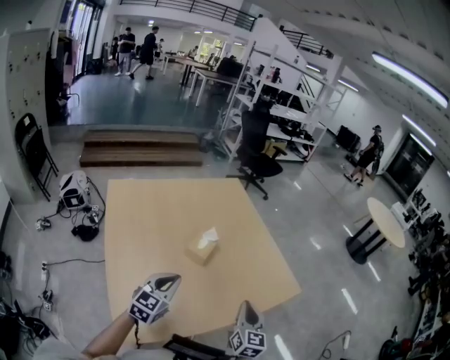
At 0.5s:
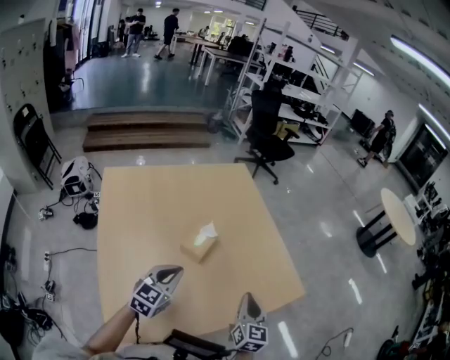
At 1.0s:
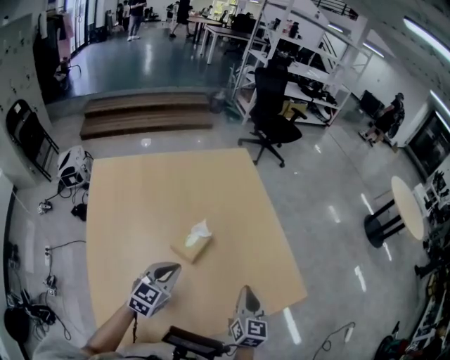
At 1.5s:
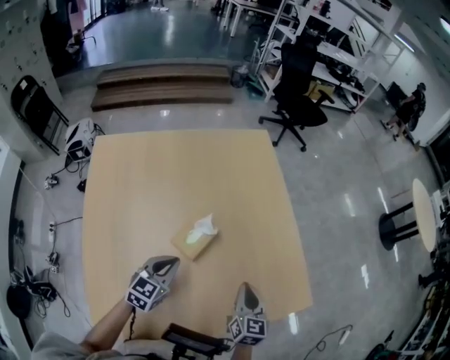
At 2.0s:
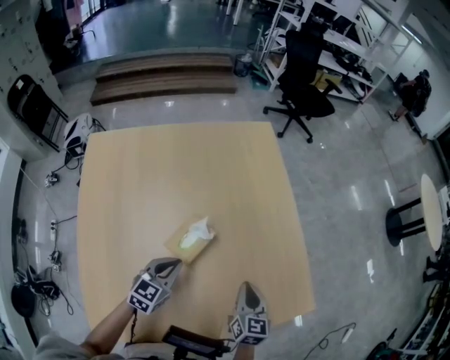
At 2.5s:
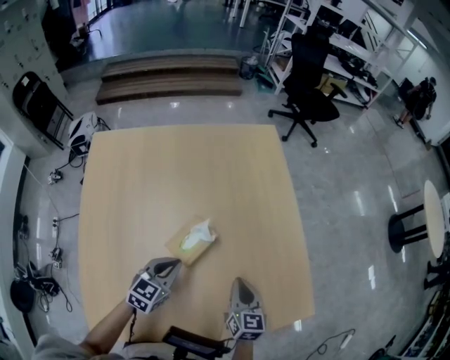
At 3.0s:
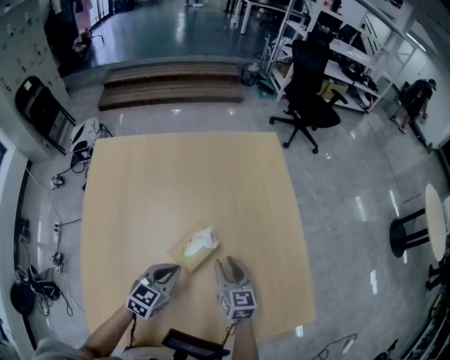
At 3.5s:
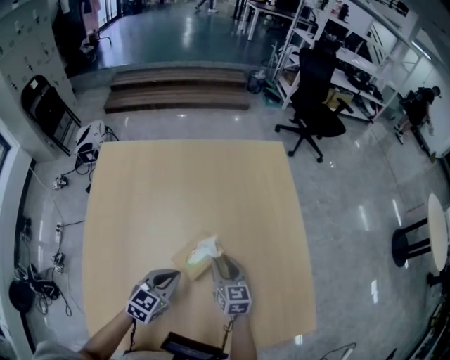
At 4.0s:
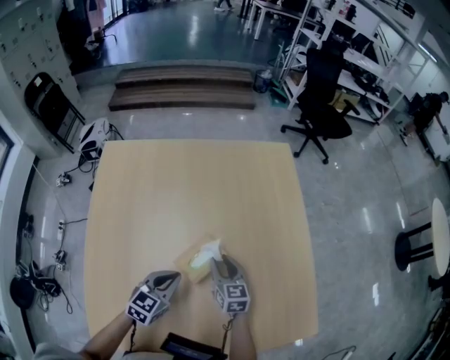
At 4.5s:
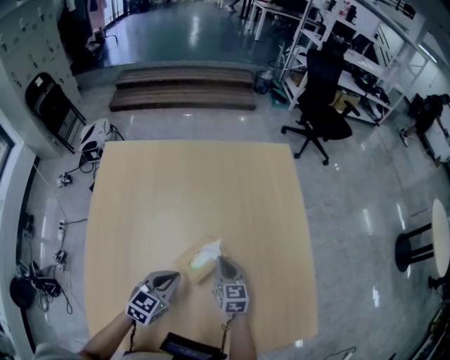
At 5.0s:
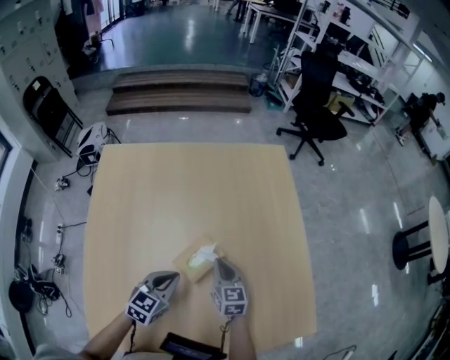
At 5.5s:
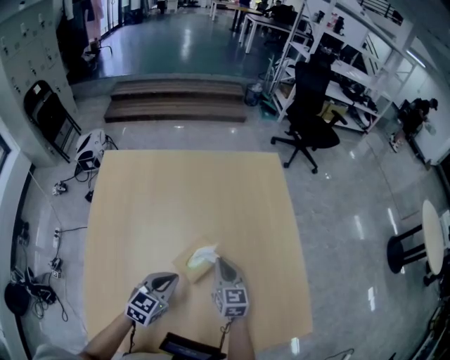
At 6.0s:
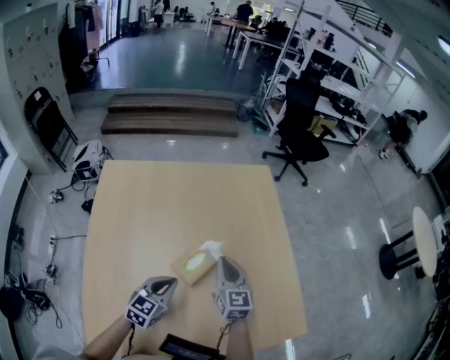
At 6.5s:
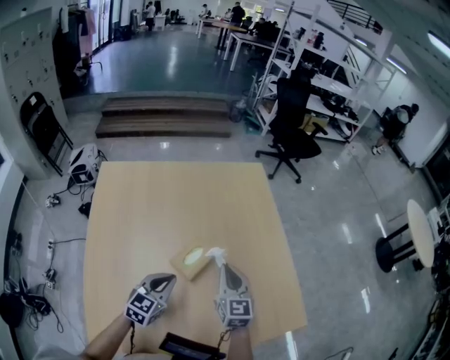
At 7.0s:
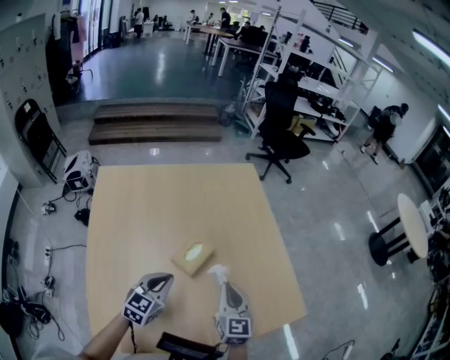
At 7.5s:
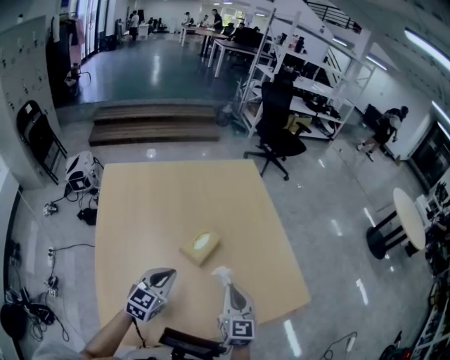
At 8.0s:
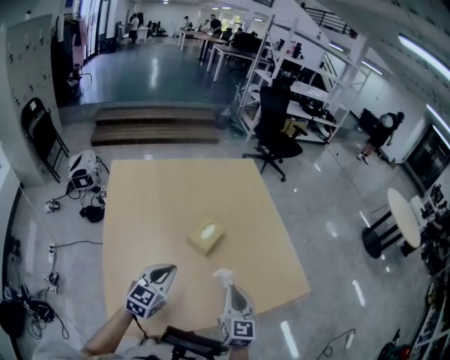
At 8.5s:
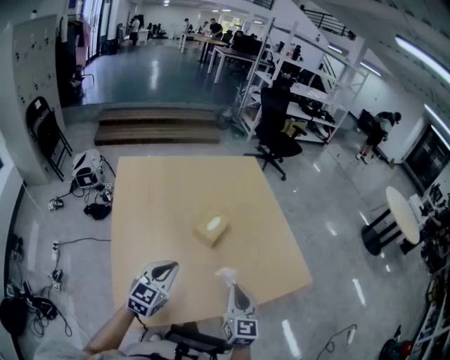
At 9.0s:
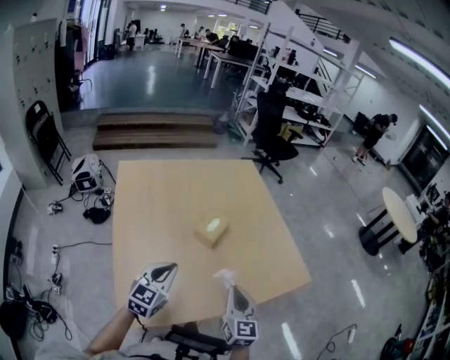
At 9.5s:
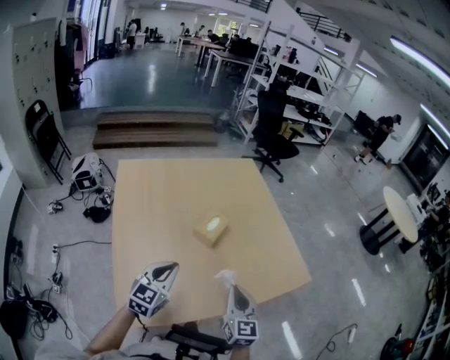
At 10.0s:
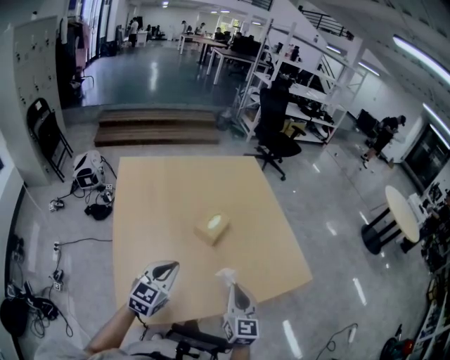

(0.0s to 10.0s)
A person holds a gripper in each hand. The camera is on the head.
0.0s - 2.0s: The two grippers go roughly 25 cm forward and downward. The right gripper swivels some 20 degrees.
2.0s - 4.0s: The right gripper travels to the left, forward and downward by roughly 20 cm, rotates about 20 degrees, and opens up.
4.0s - 6.0s: The right gripper shifts roughly 15 cm upward, and closes up.
6.0s - 8.0s: The left gripper goes approximately 15 cm backward and upward. Meanwhile the right gripper goes some 25 cm backward.
8.0s - 10.0s: Both grippers travel together backward, about 5 cm.

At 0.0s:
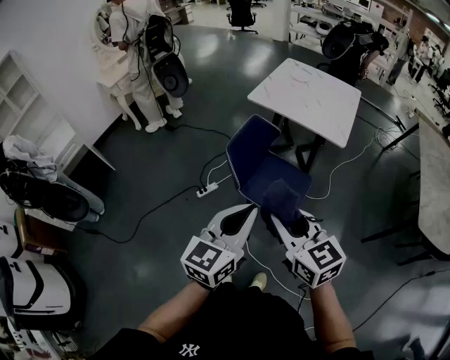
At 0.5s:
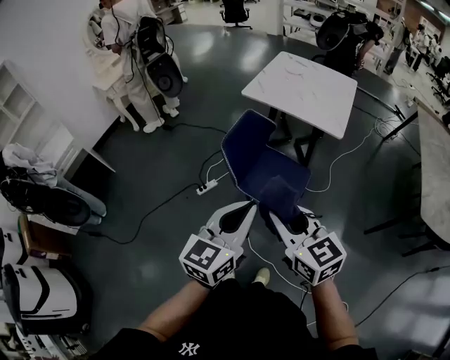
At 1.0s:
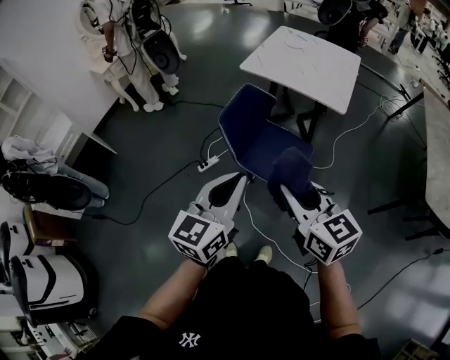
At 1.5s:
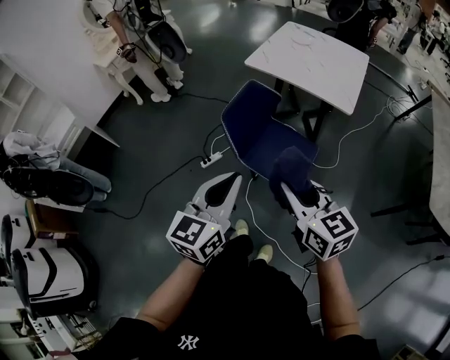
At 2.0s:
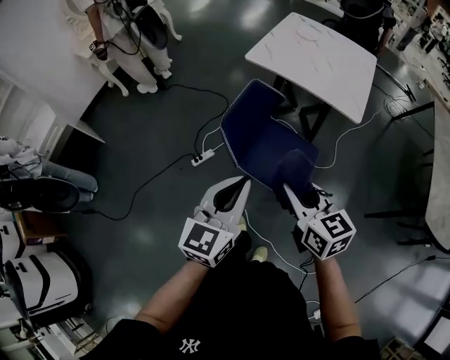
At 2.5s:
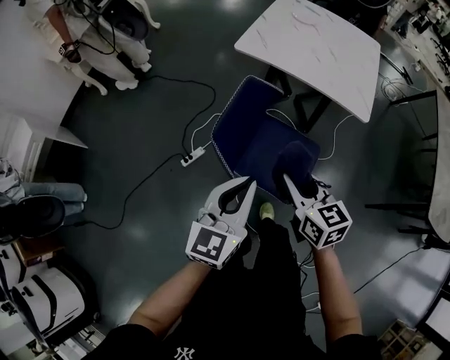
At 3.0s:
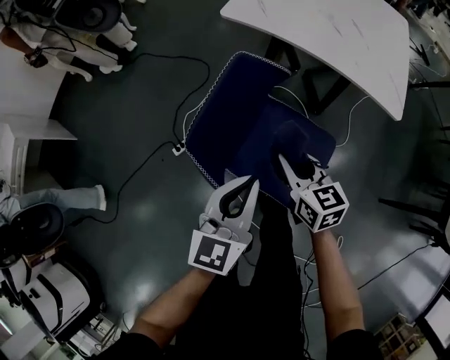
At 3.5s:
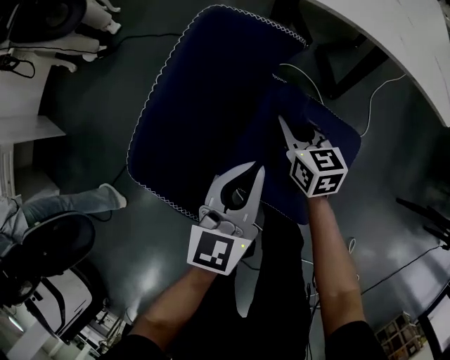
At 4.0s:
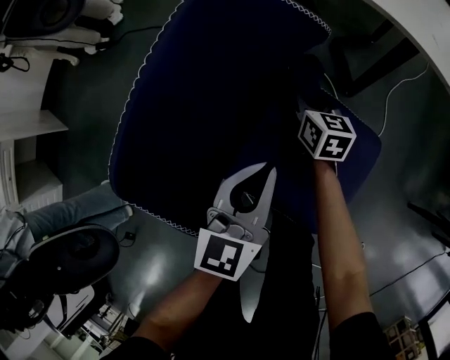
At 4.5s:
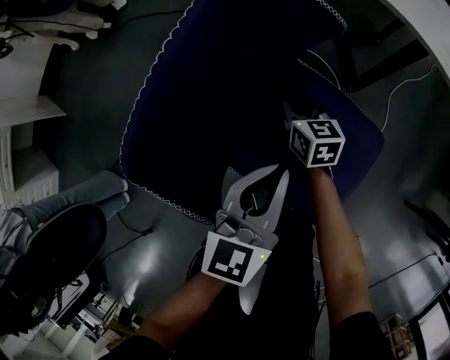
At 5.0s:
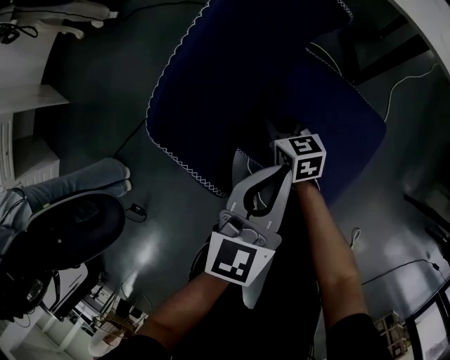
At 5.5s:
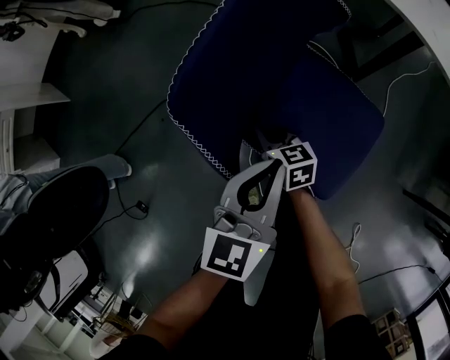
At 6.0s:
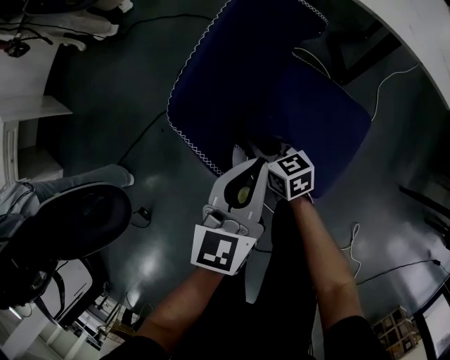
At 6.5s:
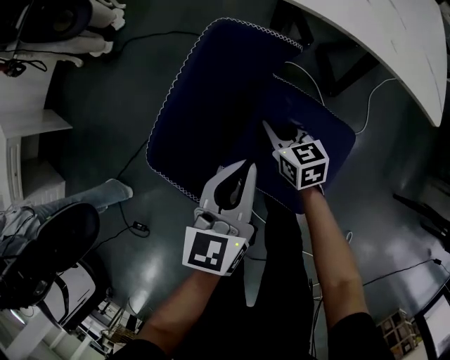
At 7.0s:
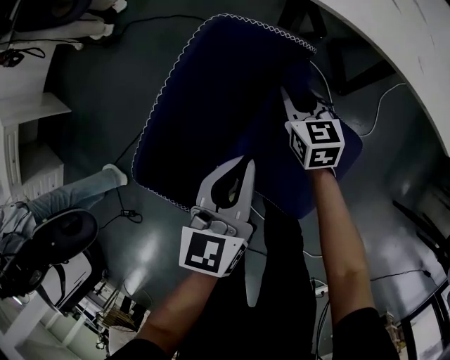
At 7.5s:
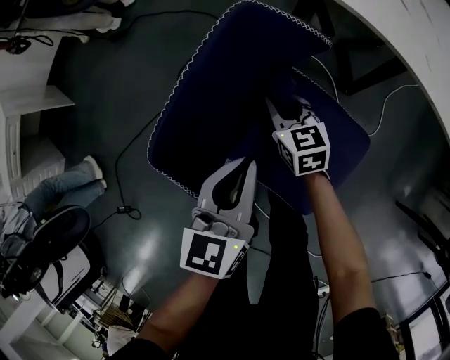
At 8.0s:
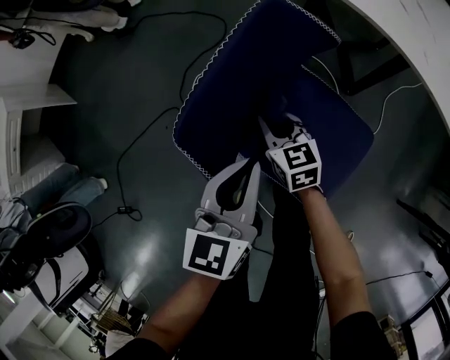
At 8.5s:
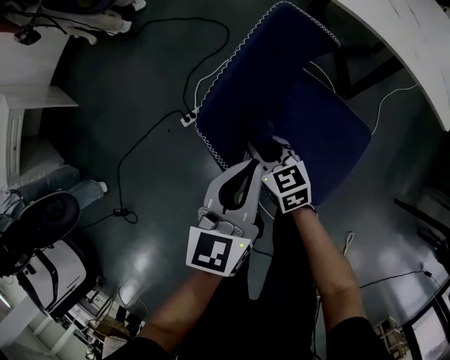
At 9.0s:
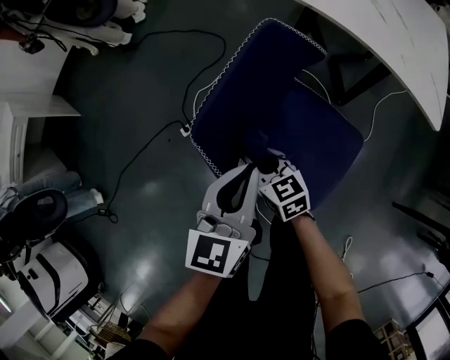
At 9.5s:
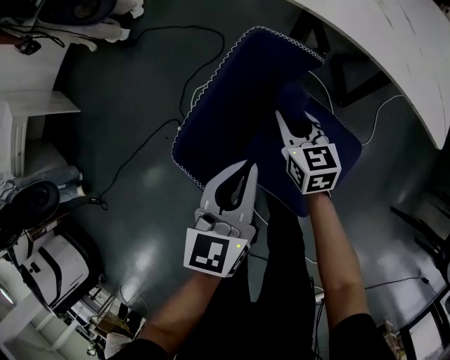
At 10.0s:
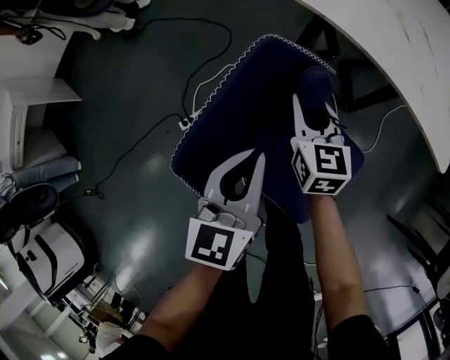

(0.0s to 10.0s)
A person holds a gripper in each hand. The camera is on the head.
0.0s - 2.0s: The two grippers go roughly 15 cm forward and downward.
2.0s - 4.0s: Both grippers travel together downward and forward, about 60 cm. The right gripper swivels some 20 degrees.
4.0s - 6.0s: The right gripper is displaced backward and to the left by about 25 cm, and changes its angle by roughly 30 degrees. The left gripper shifts roughly 15 cm upward, backward and to the left.
6.0s - 8.0s: The left gripper travels forward by approximately 5 cm. The right gripper travels forward by roughly 10 cm.
8.0s - 10.0s: The right gripper shifts approximately 20 cm to the right, forward and upward. Meanwhile the left gripper travels forward by about 5 cm.

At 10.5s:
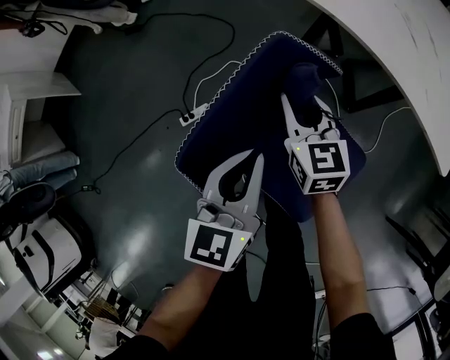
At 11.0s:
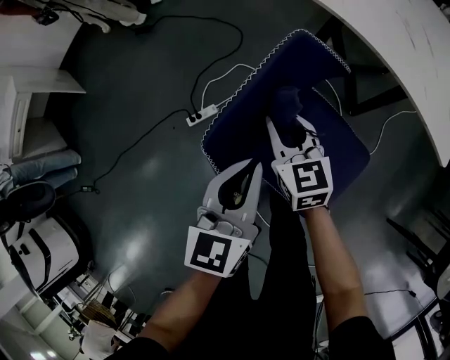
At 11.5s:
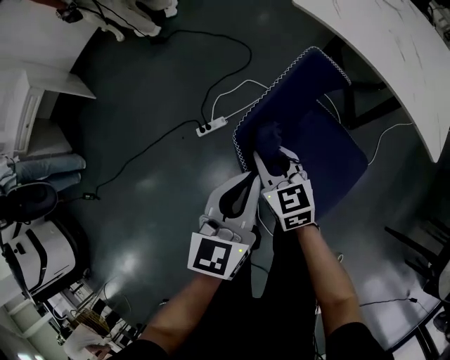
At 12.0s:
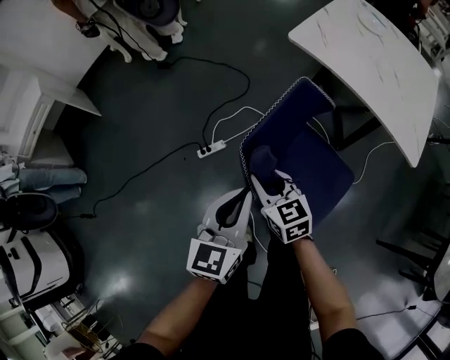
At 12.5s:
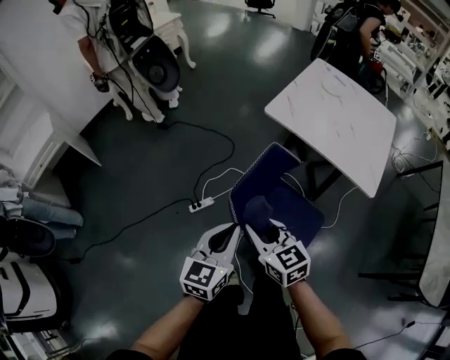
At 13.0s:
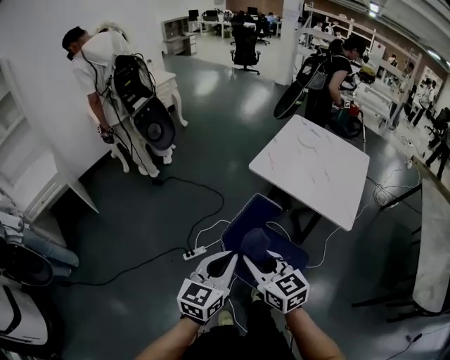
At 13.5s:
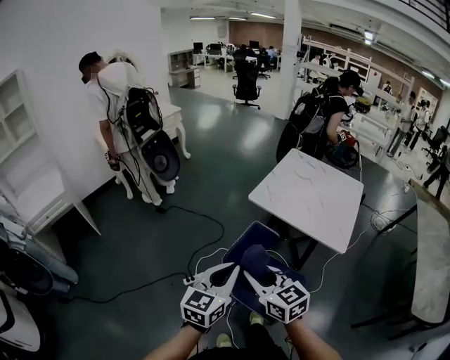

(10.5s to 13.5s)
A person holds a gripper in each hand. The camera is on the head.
10.5s - 12.0s: The left gripper moves to the left, backward and upward, roughly 20 cm. Meanwhile the right gripper moves backward, to the left and upward, some 30 cm.
12.0s - 13.5s: The grippers both shift upward by some 35 cm.

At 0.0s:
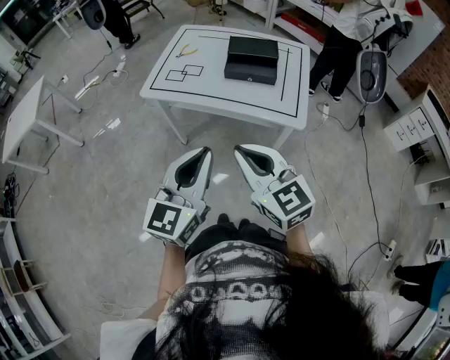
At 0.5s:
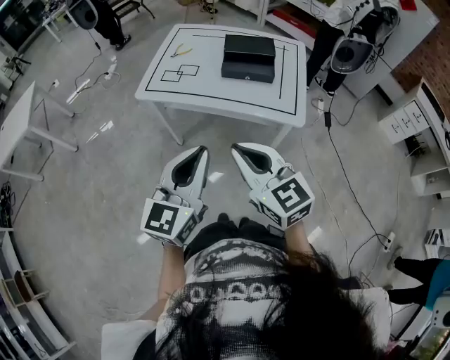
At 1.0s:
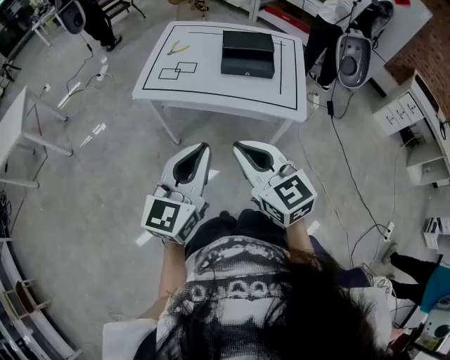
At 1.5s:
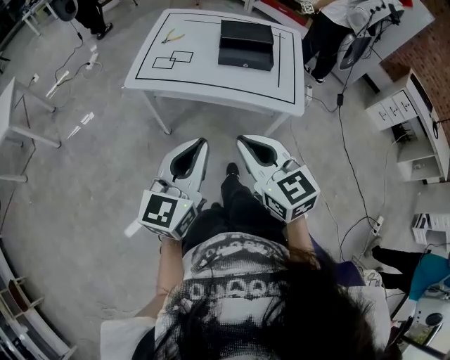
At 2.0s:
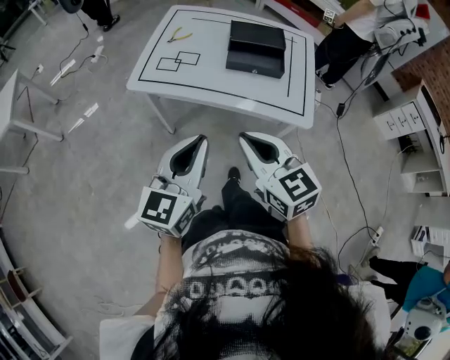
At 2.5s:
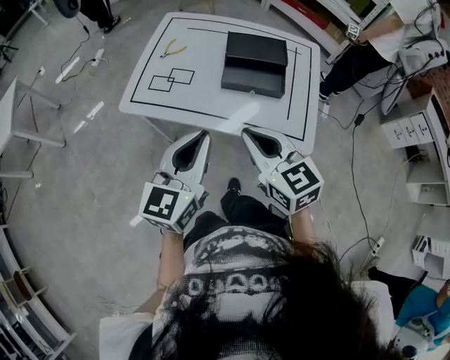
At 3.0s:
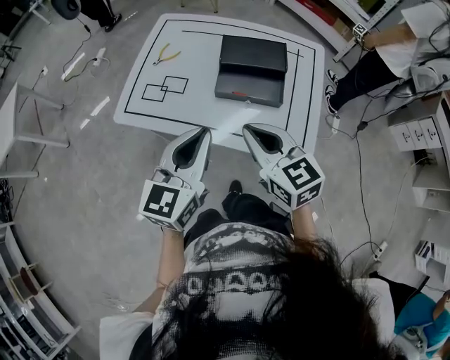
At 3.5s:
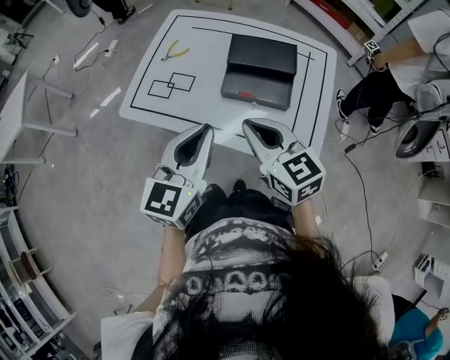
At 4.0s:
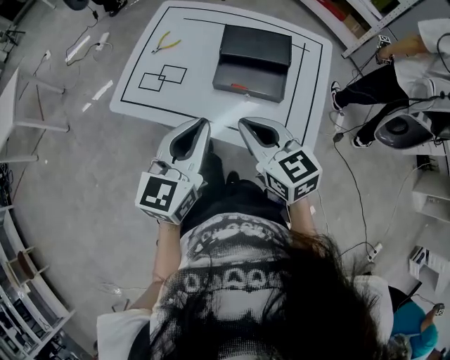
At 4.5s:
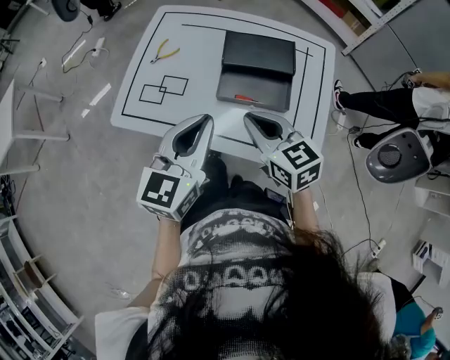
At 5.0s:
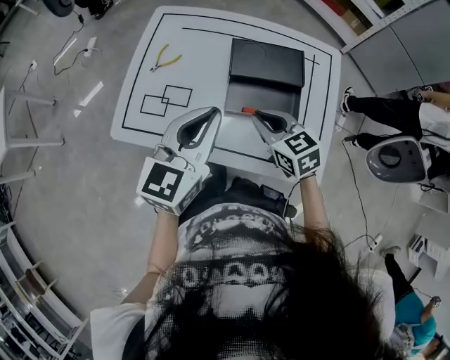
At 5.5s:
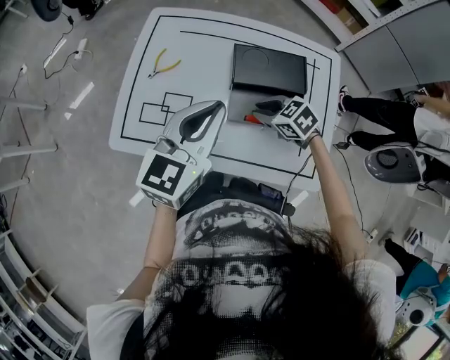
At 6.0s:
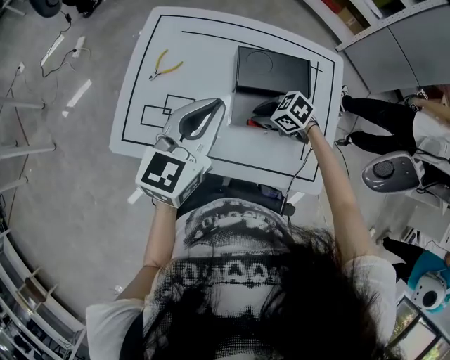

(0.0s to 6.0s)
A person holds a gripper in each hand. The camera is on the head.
0.0s - 2.0s: The left gripper shifts roughly 15 cm forward, to the left and downward. The right gripper heads forward and downward, covering roughly 10 cm.
2.0s - 4.0s: Both grippers travel together forward and to the right, roughly 25 cm.
4.0s - 6.0s: The left gripper moves forward, about 20 cm; the right gripper travels downward and forward by about 30 cm, tips its fingers downward by roughly 30 degrees, and opens.
